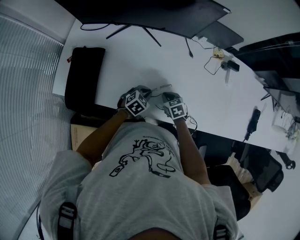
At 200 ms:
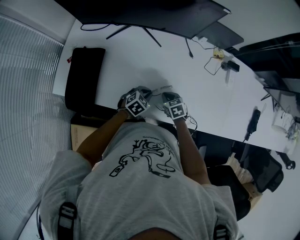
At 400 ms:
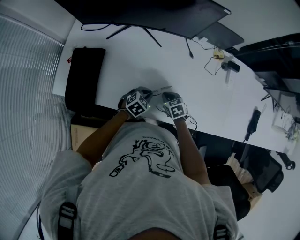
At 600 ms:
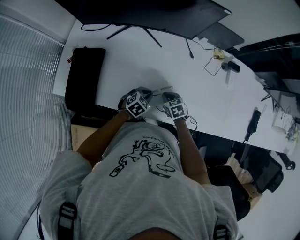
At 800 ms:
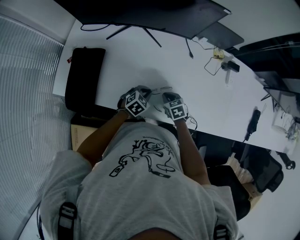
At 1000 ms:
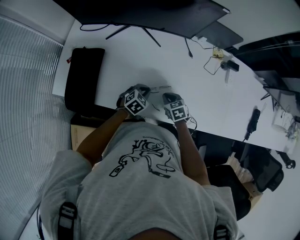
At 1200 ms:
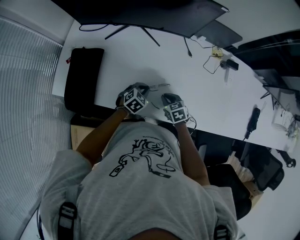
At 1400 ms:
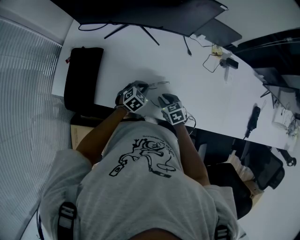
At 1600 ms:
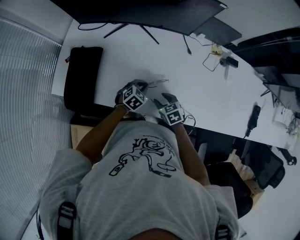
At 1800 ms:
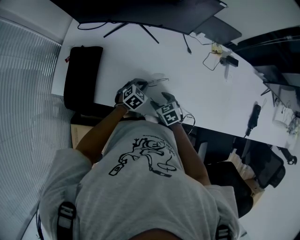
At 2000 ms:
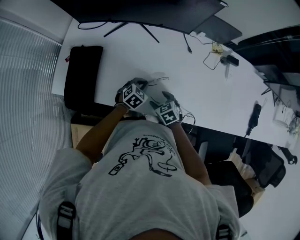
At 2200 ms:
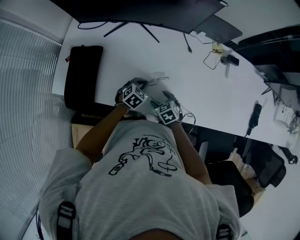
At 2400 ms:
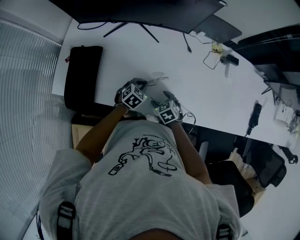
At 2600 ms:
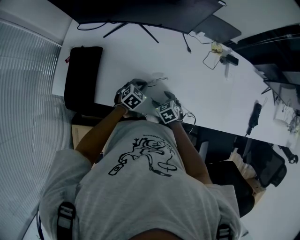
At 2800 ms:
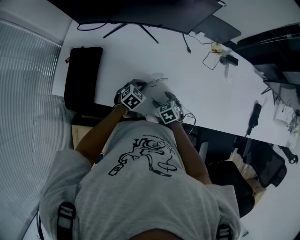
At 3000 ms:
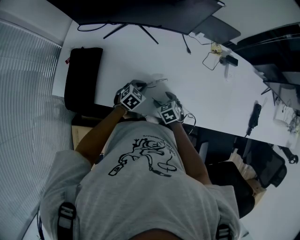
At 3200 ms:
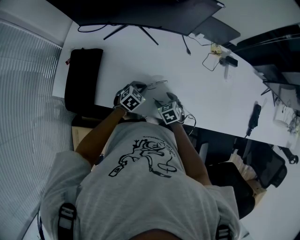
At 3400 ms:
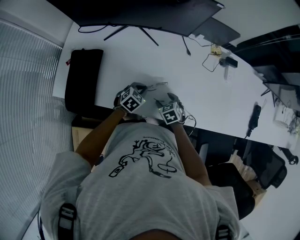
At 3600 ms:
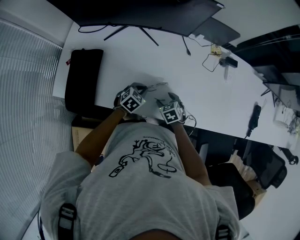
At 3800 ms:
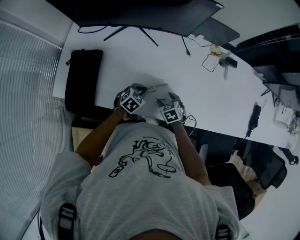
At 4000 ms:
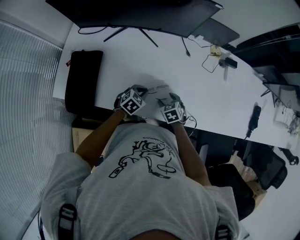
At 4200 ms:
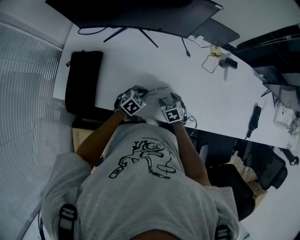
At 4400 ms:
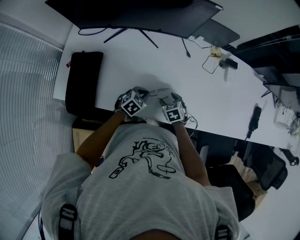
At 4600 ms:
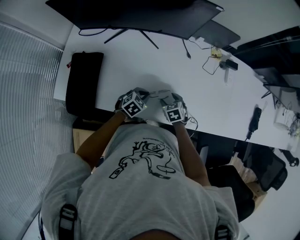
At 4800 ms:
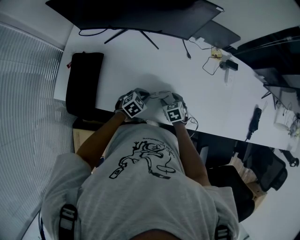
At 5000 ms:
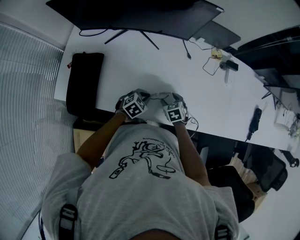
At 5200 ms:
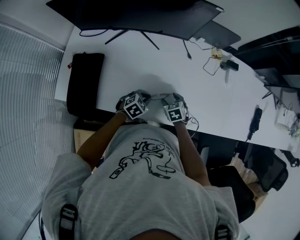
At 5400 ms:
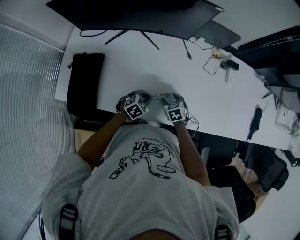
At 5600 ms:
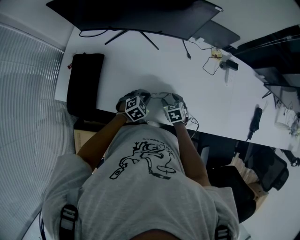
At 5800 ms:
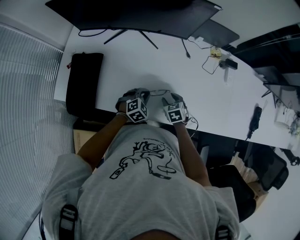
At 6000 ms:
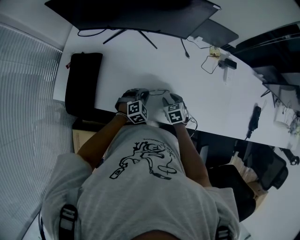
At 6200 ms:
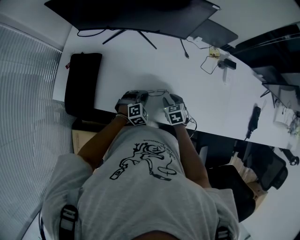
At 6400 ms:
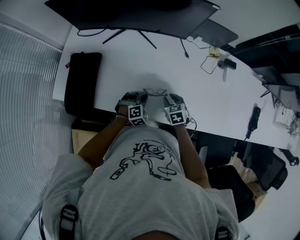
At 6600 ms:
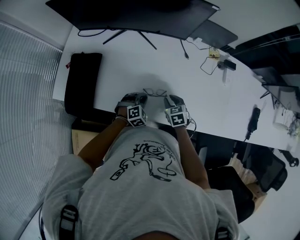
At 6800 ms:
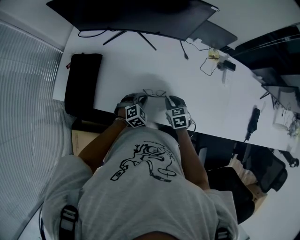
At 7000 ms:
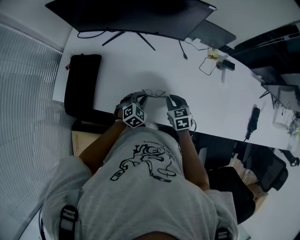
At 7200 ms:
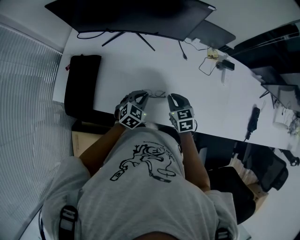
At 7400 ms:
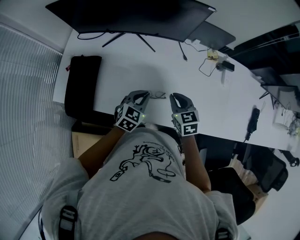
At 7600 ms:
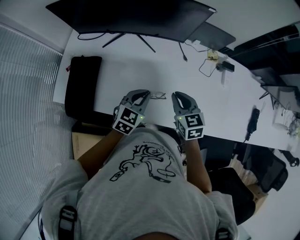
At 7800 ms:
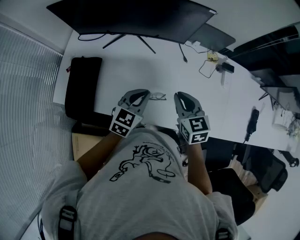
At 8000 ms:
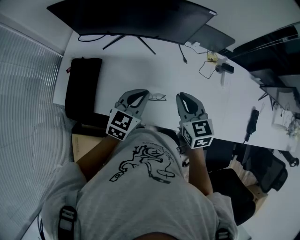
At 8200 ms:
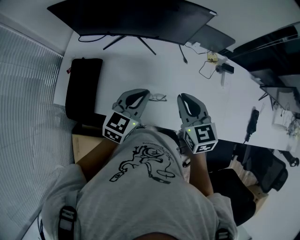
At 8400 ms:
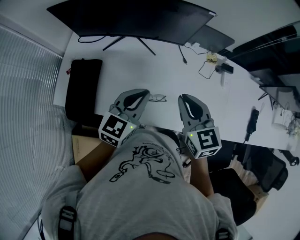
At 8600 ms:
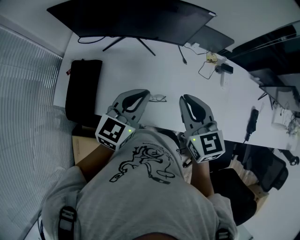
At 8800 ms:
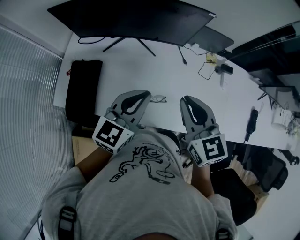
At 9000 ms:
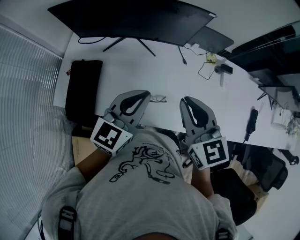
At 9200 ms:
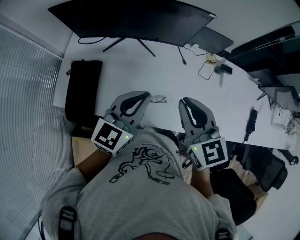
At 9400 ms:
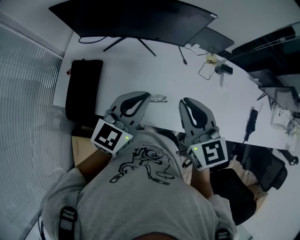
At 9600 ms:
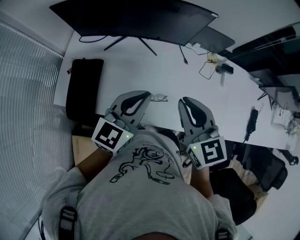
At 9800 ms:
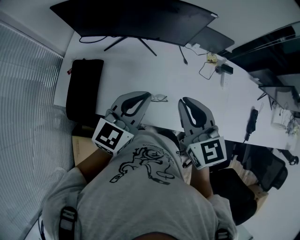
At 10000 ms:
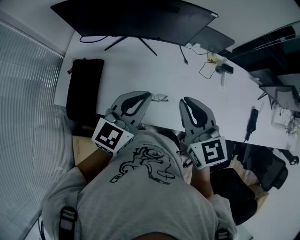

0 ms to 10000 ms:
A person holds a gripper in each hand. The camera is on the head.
0 ms to 1400 ms: The grippers make only small movements.
1400 ms to 2800 ms: The right gripper opens its fingers.
2800 ms to 4200 ms: The grippers stay close to where they were, moving slightly.
4200 ms to 5800 ms: The left gripper turns by about 20 degrees.
5800 ms to 7200 ms: The right gripper shifts roughly 10 cm upward, and closes. The left gripper goes roughly 5 cm upward, and swivels approximately 20 degrees.
7200 ms to 8600 ms: The grippers both shift upward by some 25 cm. The left gripper turns by approximately 30 degrees.
8600 ms to 10000 ms: There are only small adjustments of the grippers.

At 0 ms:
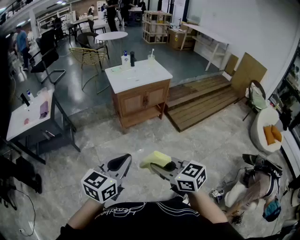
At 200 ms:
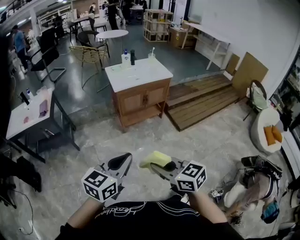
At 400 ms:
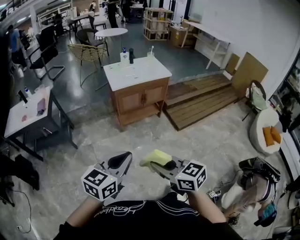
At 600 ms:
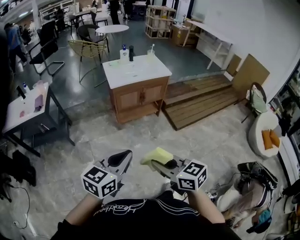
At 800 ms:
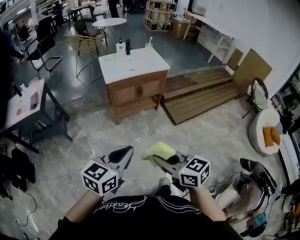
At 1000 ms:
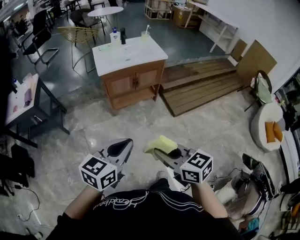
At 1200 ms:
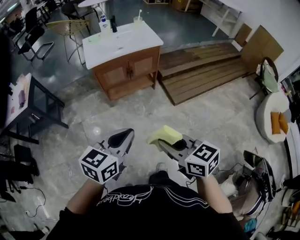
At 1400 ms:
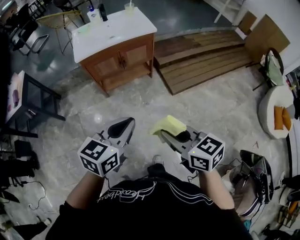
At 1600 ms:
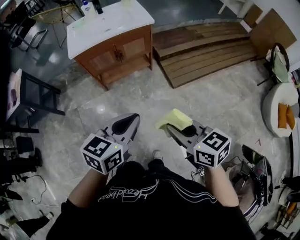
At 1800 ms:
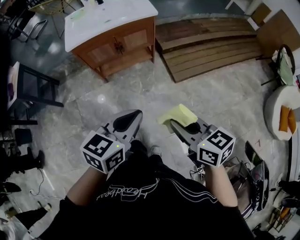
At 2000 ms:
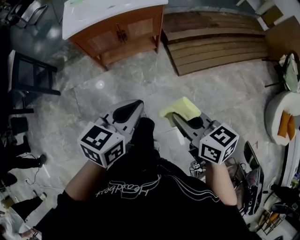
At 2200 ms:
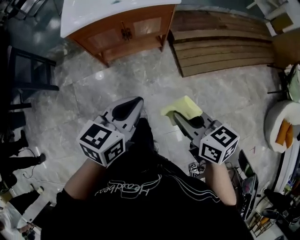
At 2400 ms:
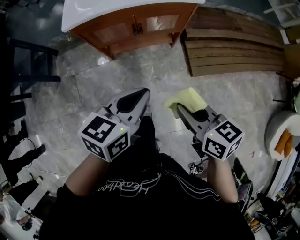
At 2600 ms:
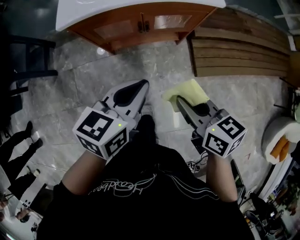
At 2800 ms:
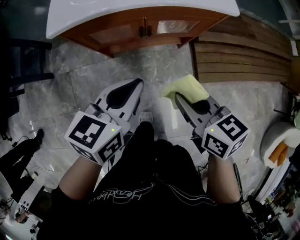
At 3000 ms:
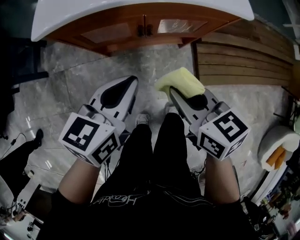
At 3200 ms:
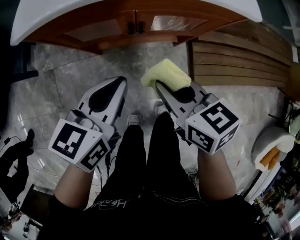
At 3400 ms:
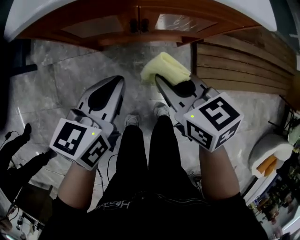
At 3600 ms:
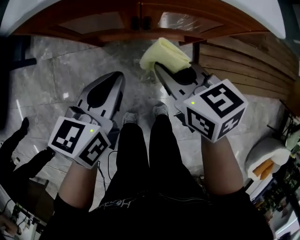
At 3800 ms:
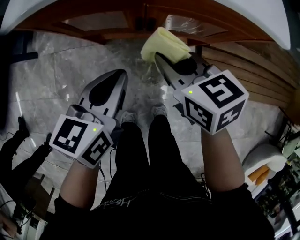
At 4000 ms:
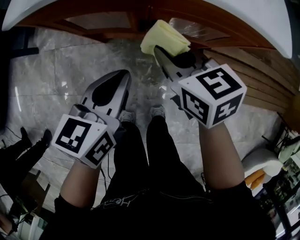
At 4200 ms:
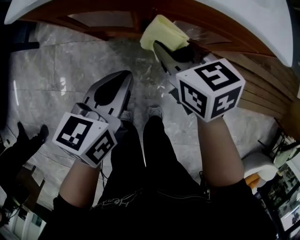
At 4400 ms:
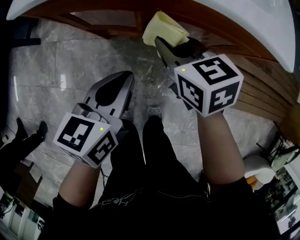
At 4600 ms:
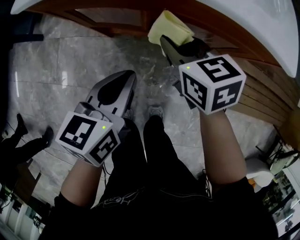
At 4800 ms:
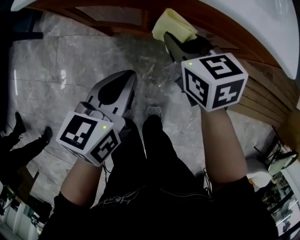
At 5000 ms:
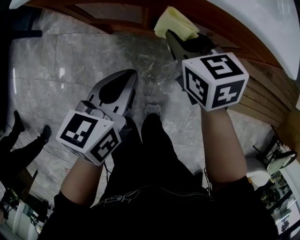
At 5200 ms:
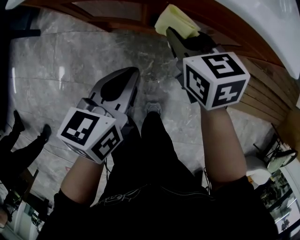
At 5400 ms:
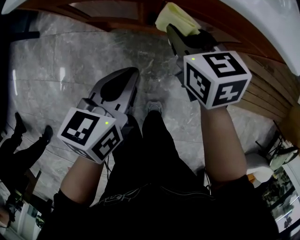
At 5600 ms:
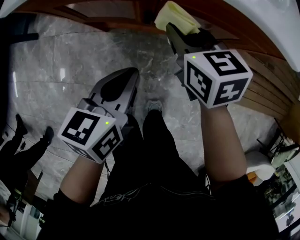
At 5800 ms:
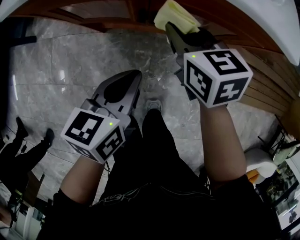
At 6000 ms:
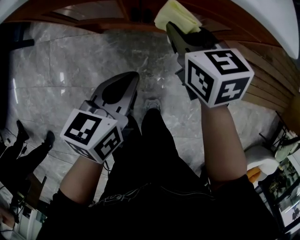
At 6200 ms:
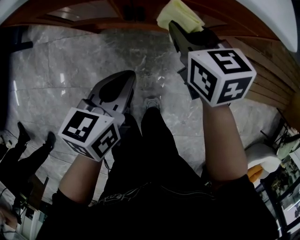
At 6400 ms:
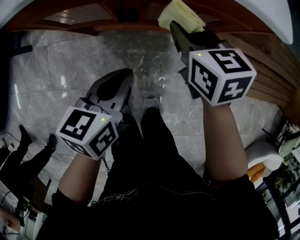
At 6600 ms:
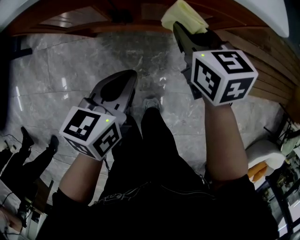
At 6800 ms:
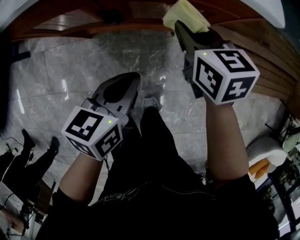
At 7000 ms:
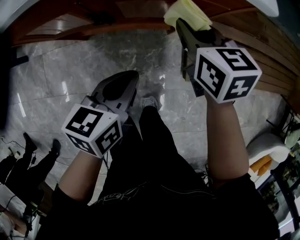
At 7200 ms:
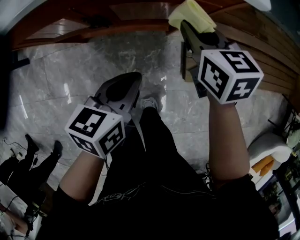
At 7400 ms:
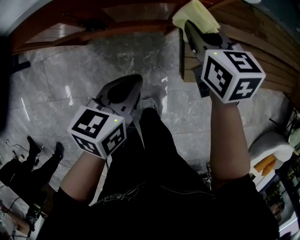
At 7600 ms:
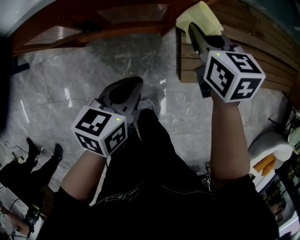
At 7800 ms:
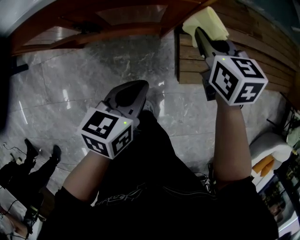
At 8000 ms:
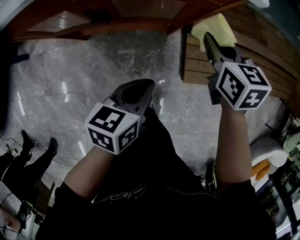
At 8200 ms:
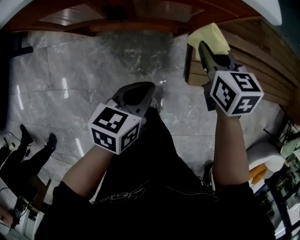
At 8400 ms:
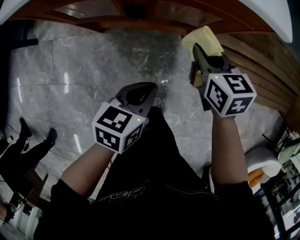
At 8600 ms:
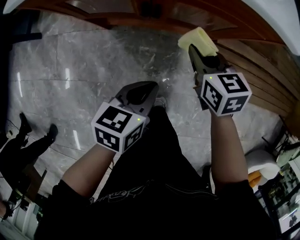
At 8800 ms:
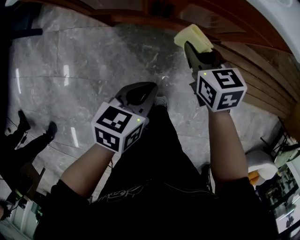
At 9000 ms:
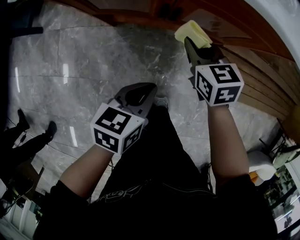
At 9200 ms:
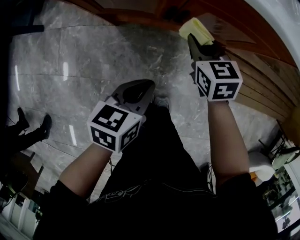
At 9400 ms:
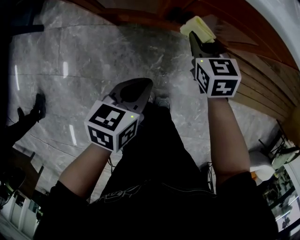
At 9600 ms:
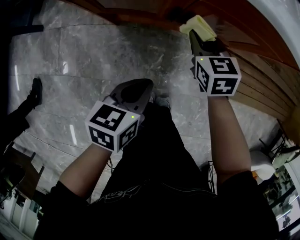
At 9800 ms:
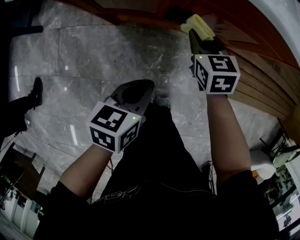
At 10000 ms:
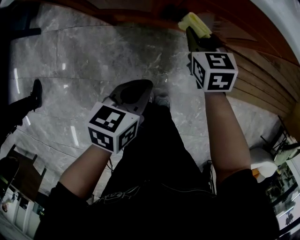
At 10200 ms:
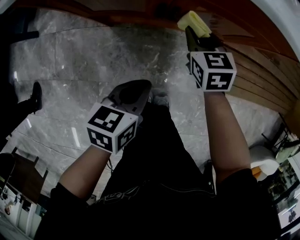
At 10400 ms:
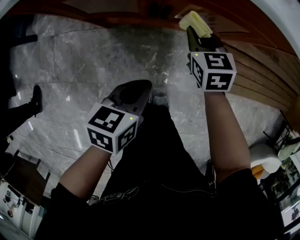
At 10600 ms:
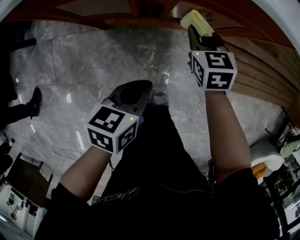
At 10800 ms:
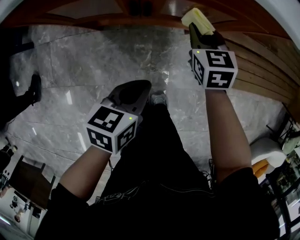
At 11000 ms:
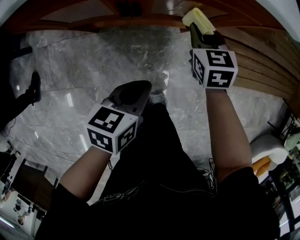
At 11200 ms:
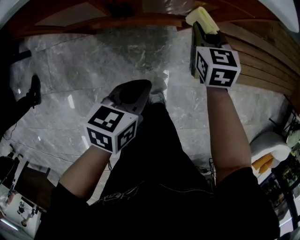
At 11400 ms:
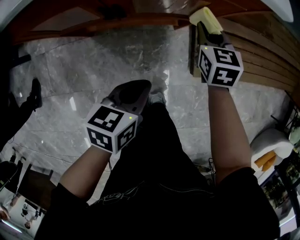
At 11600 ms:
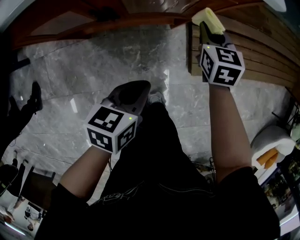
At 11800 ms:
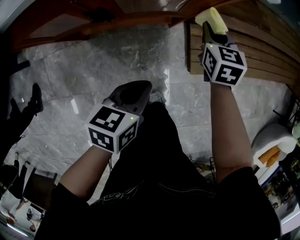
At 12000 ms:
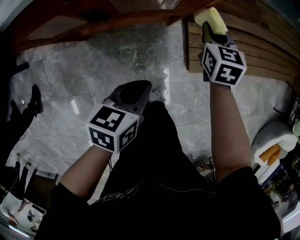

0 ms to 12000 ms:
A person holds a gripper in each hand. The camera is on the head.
0 ms to 1600 ms: The pair of grippers is taken to the right and forward, approximately 40 cm.
1600 ms to 3000 ms: Both grippers are carried forward, about 40 cm. Both grippers move downward, roughly 20 cm. The left gripper changes its angle by approximately 20 degrees.
3000 ms to 4400 ms: The left gripper travels downward by some 10 cm, and rotates roughly 20 degrees. The right gripper moves forward and downward, about 20 cm.
4400 ms to 6000 ms: The left gripper ends up approximately 5 cm from where it was. The right gripper shifts roughly 5 cm to the right.
6000 ms to 7600 ms: Both grippers move to the right, roughly 15 cm.
7600 ms to 9000 ms: The left gripper shifts about 15 cm to the left and backward; the right gripper shifts some 20 cm to the left.
9000 ms to 10400 ms: The right gripper shifts by approximately 5 cm.
10400 ms to 12000 ms: The left gripper goes some 10 cm to the right. The right gripper heads to the right, covering about 20 cm, and changes its angle by about 20 degrees.

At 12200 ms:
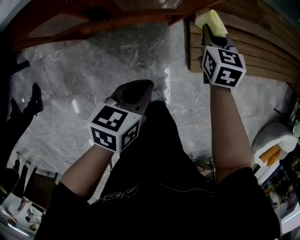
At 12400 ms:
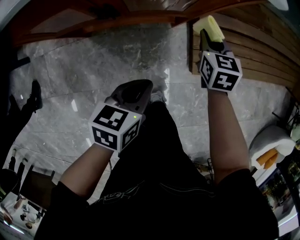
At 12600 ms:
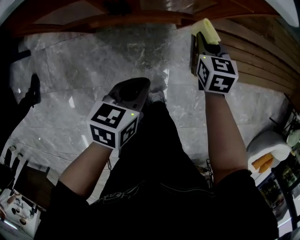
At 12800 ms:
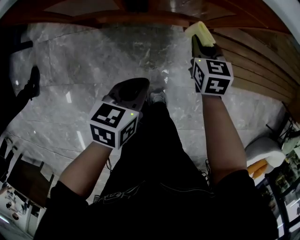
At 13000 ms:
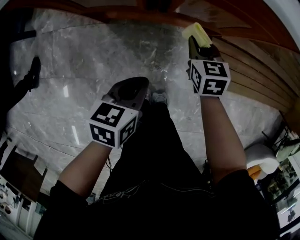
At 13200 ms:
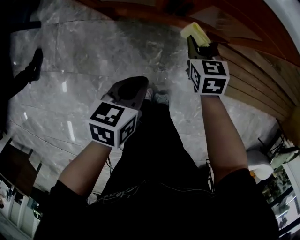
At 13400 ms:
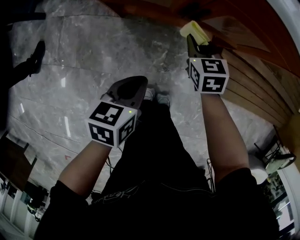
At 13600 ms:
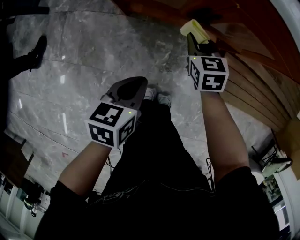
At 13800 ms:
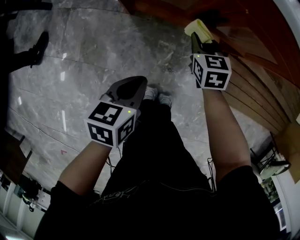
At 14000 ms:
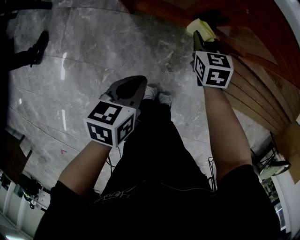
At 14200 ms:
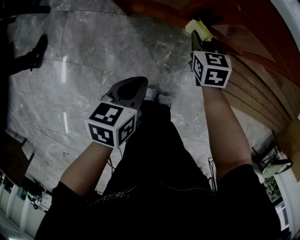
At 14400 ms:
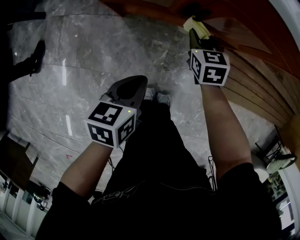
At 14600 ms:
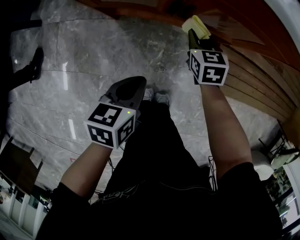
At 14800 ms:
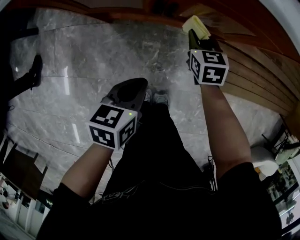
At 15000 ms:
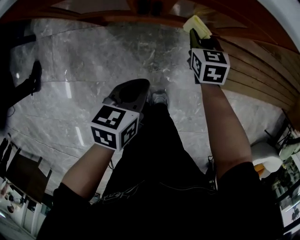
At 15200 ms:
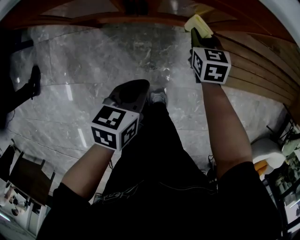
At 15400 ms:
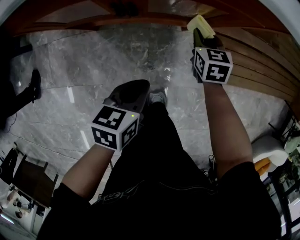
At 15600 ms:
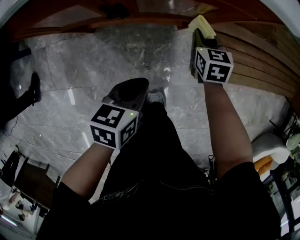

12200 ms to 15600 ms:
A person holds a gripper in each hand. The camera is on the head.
12200 ms to 13800 ms: The right gripper moves roughly 30 cm, and turns by approximately 30 degrees; the left gripper ends up roughly 20 cm from where it was, and changes its angle by some 30 degrees.
13800 ms to 15600 ms: The two grippers go roughly 20 cm to the right. The right gripper swivels some 20 degrees.
